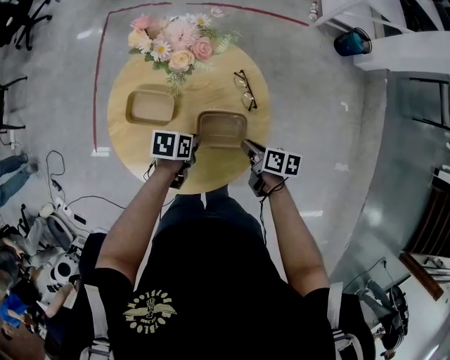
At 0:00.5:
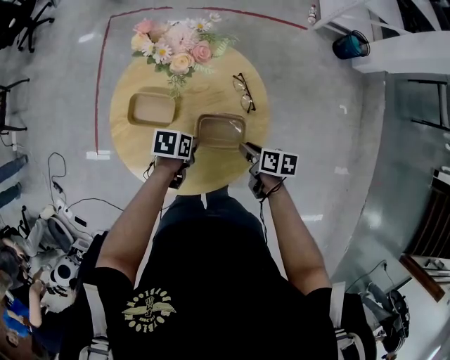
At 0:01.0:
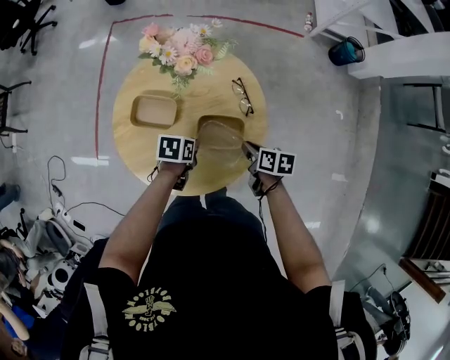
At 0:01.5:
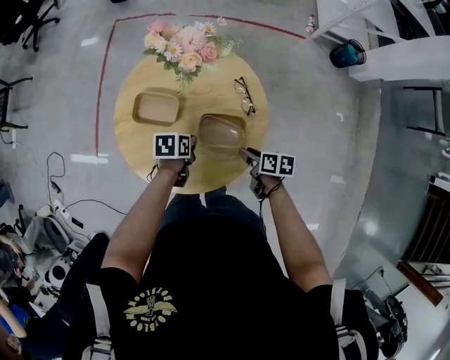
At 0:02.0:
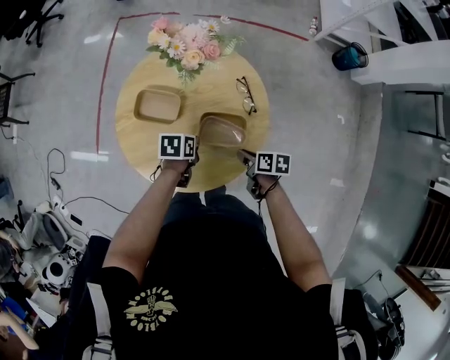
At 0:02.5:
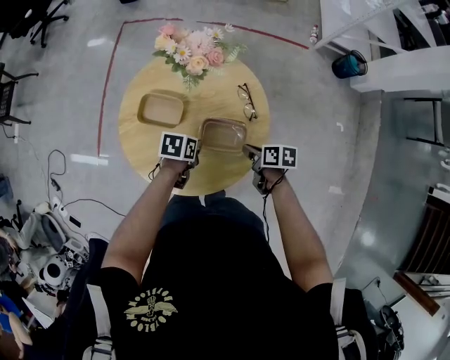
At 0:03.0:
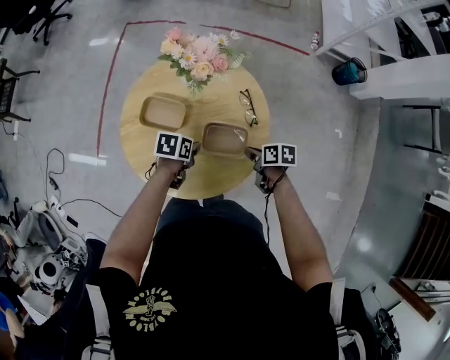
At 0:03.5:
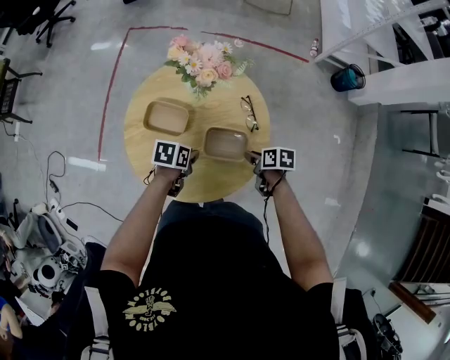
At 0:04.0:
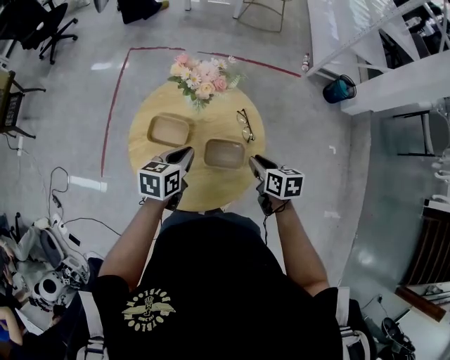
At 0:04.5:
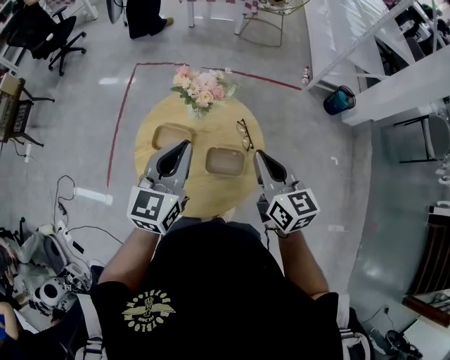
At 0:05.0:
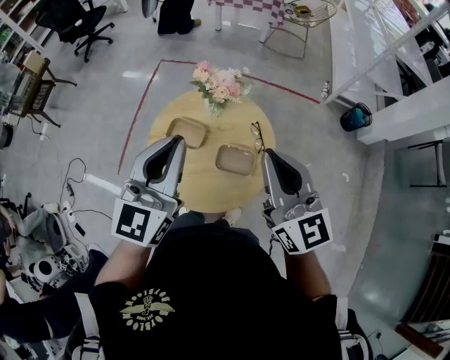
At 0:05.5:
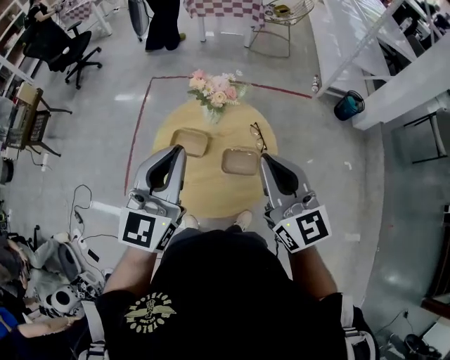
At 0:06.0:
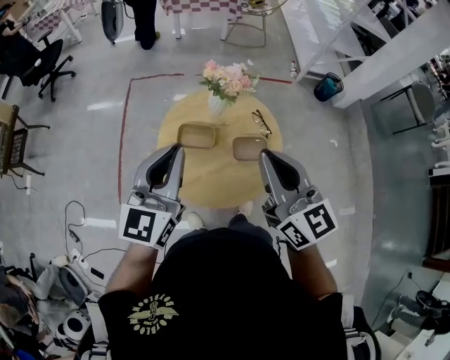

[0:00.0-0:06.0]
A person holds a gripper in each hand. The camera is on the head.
0:00.0 to 0:02.0: The right gripper opens and closes again.
0:02.0 to 0:04.0: Both grippers move upward, approximately 15 cm. The left gripper swivels approximately 30 degrees, while the right gripper changes its angle by approximately 30 degrees.
0:04.0 to 0:06.0: The two grippers go some 35 cm upward and to the left. The left gripper tips its fingers upward by about 40 degrees; the right gripper points its fingers roughly 40 degrees further upward, and closes its fingers.

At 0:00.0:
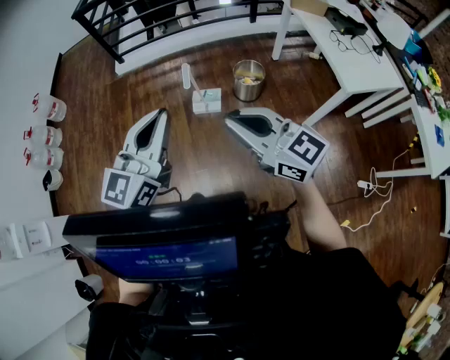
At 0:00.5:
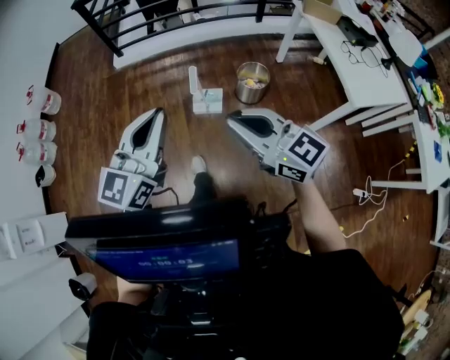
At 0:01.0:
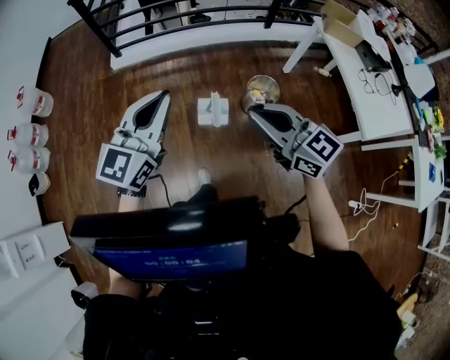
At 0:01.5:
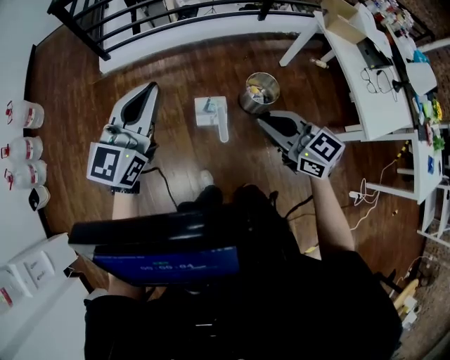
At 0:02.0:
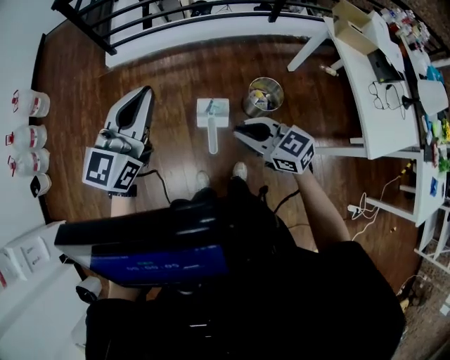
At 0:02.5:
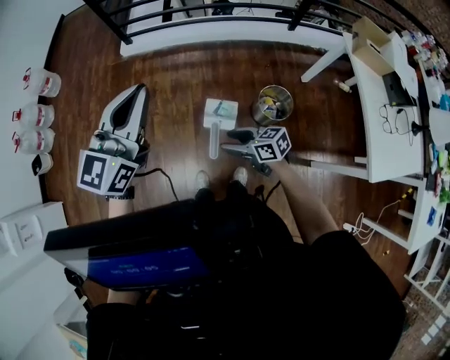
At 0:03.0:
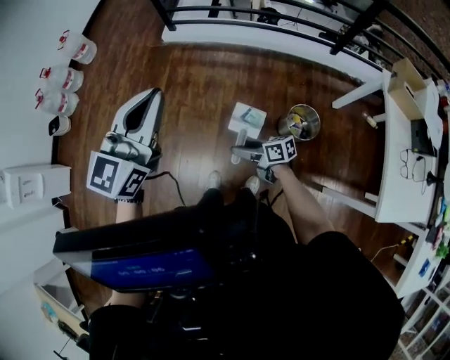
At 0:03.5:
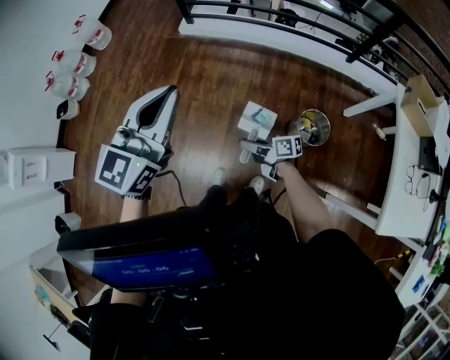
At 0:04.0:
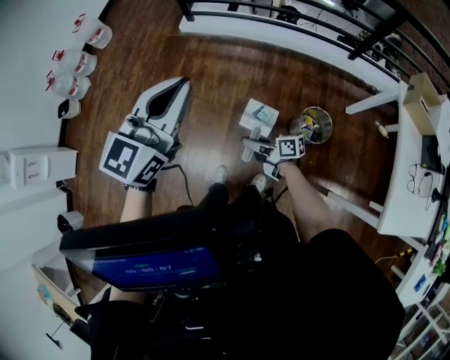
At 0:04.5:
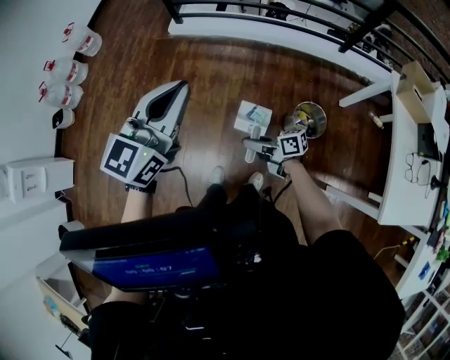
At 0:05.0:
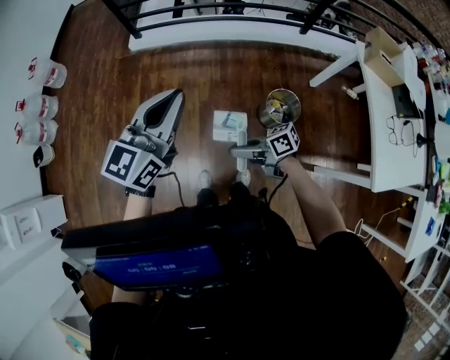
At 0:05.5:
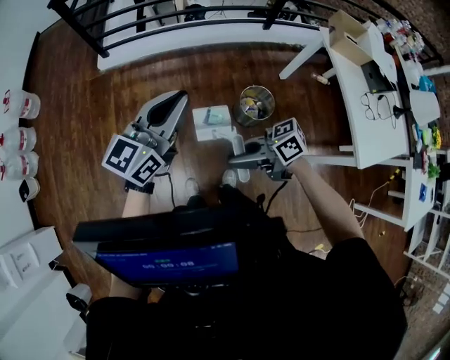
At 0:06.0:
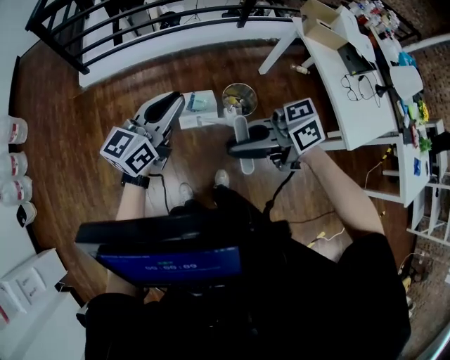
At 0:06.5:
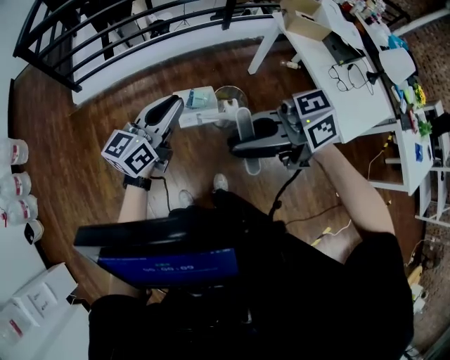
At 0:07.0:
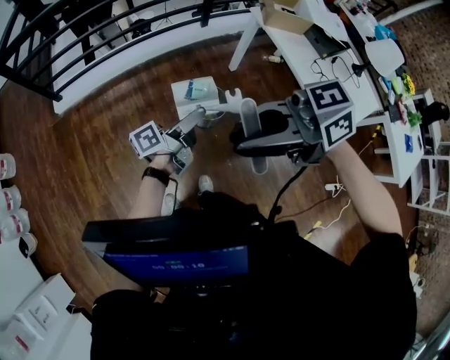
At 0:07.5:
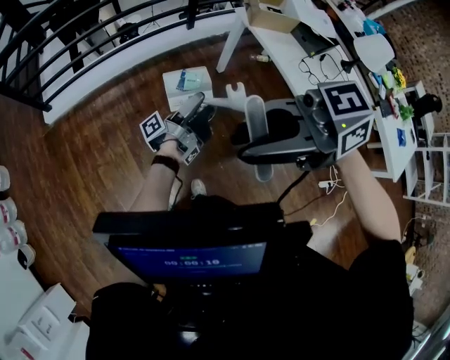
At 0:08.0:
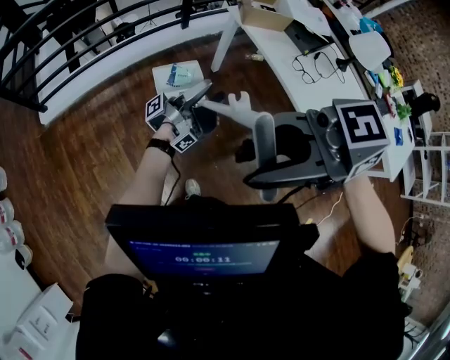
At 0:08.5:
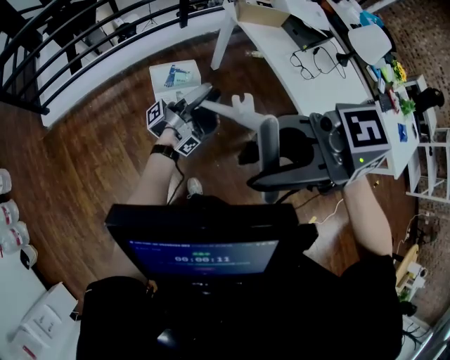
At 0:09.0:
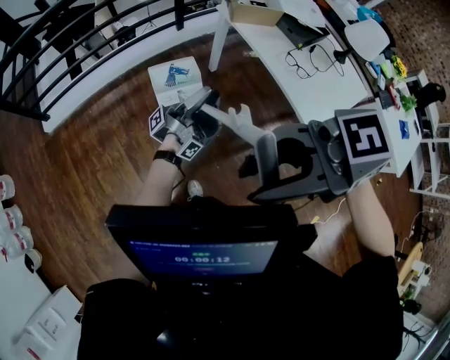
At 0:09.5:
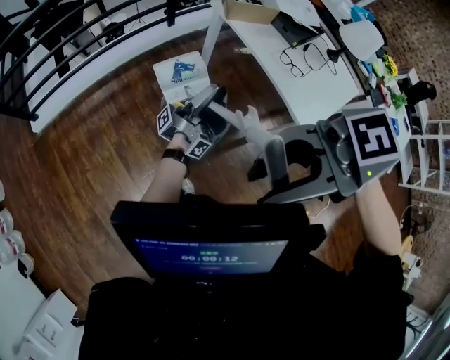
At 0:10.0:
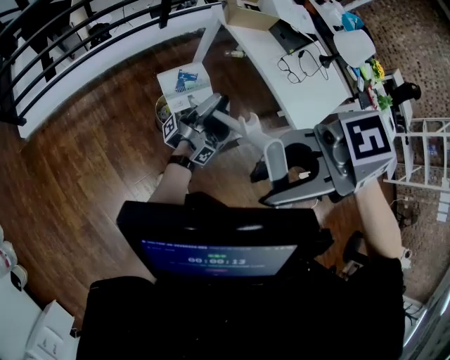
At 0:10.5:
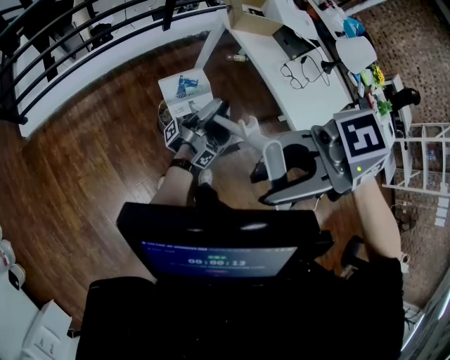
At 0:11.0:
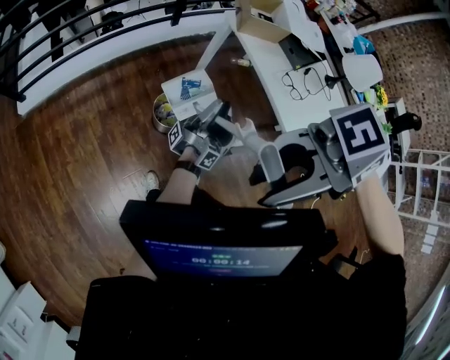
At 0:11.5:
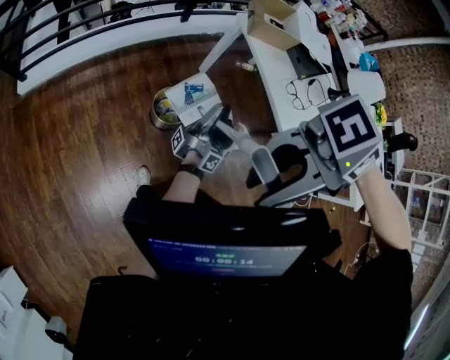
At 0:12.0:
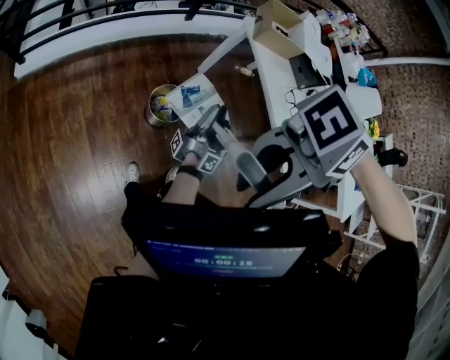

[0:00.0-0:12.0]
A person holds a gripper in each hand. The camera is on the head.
0:00.0 to 0:02.0: The right gripper ends up some 40 cm from where it was, and rotates about 20 degrees.
0:02.0 to 0:04.0: The right gripper moves downward, approximately 20 cm, twists roughly 50 degrees clockwise, seen from behind, and opens, then closes again.
0:04.0 to 0:06.0: The right gripper shifts some 25 cm upward, and swivels roughly 20 degrees.
0:06.0 to 0:08.0: The right gripper moves upward, about 15 cm, and changes its angle by approximately 20 degrees.
0:10.0 to 0:12.0: The right gripper shifts about 5 cm downward, and turns by roughly 40 degrees.

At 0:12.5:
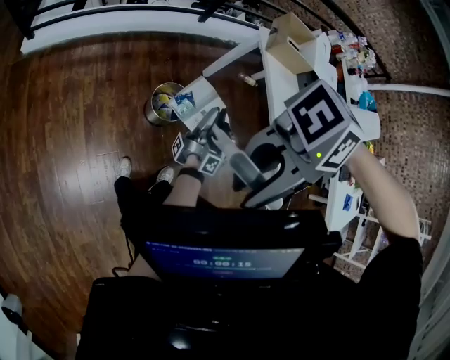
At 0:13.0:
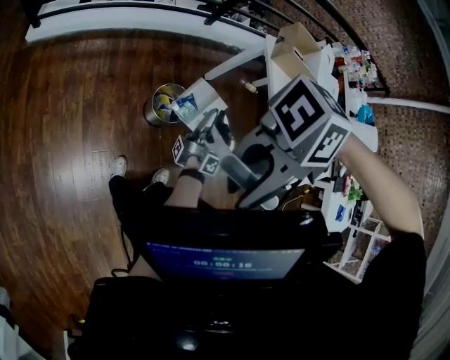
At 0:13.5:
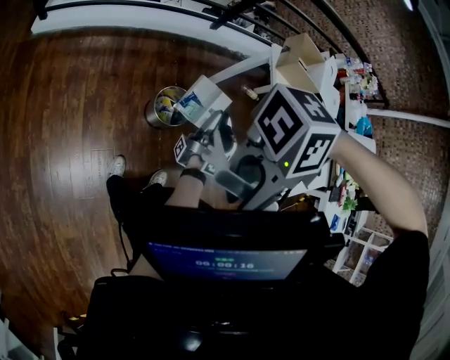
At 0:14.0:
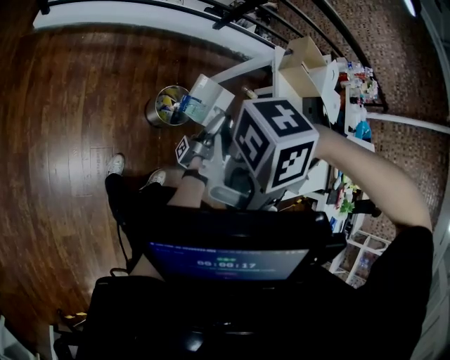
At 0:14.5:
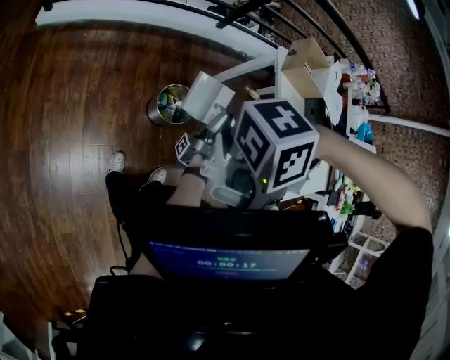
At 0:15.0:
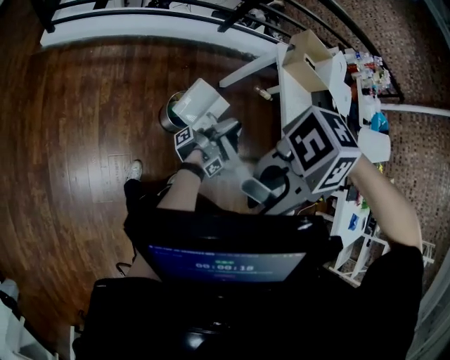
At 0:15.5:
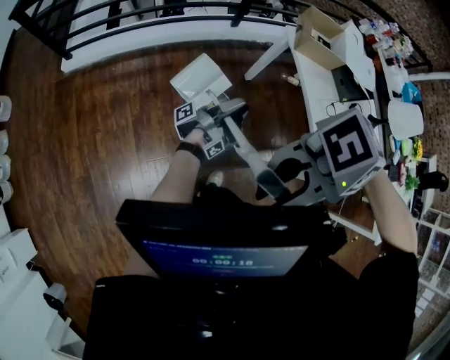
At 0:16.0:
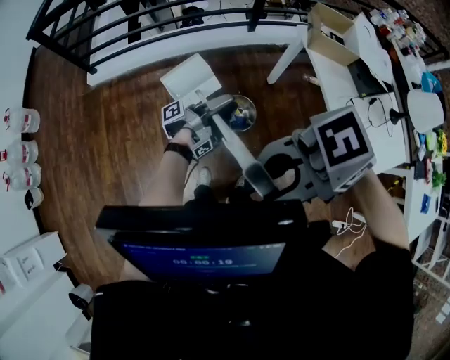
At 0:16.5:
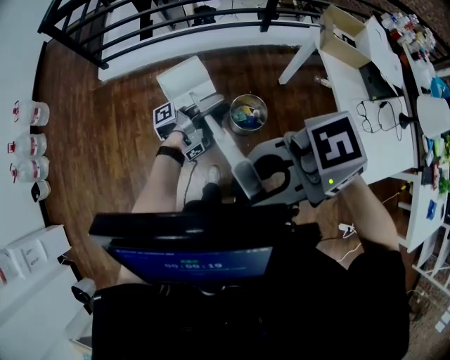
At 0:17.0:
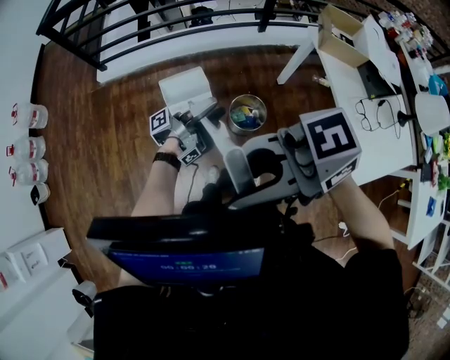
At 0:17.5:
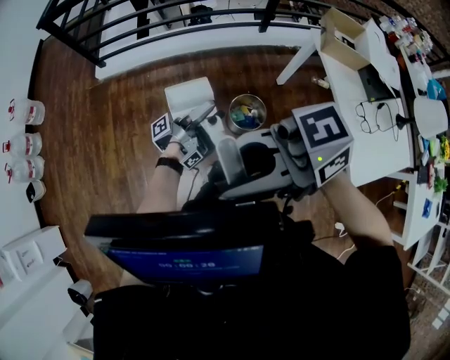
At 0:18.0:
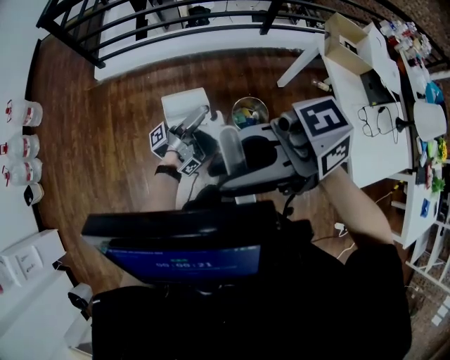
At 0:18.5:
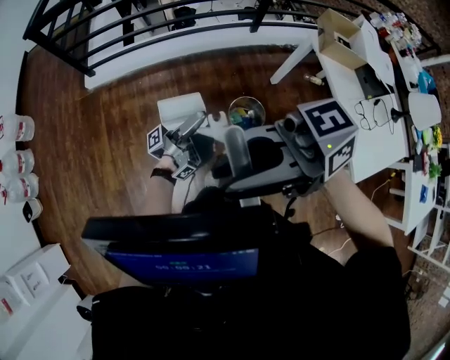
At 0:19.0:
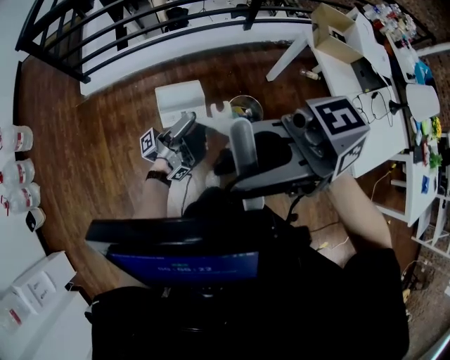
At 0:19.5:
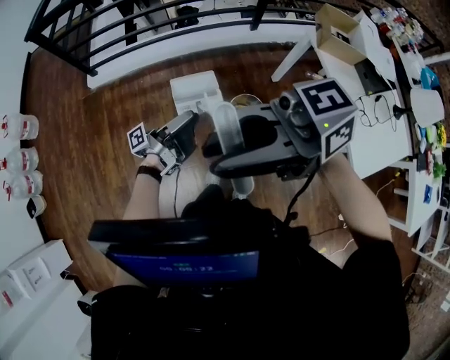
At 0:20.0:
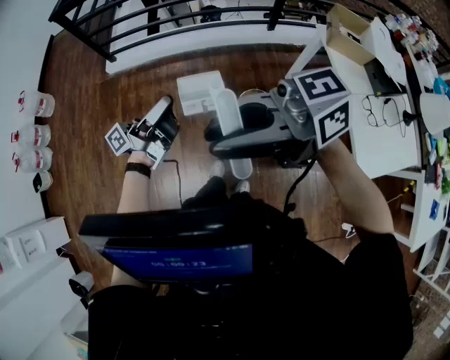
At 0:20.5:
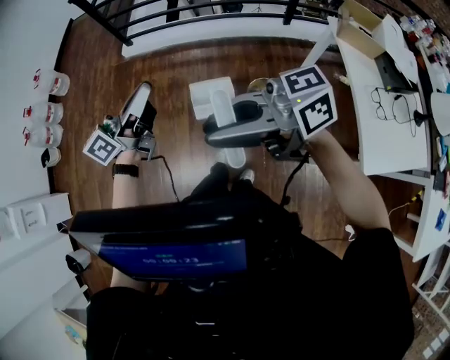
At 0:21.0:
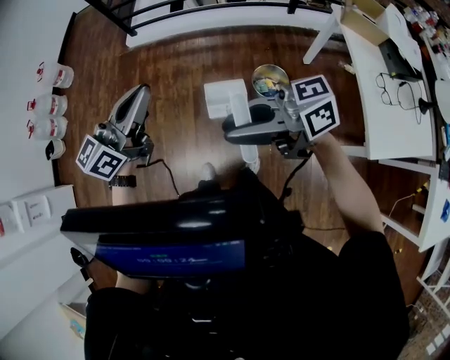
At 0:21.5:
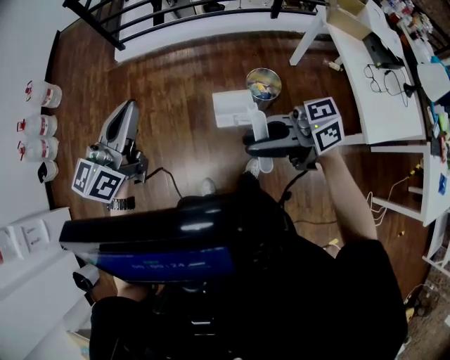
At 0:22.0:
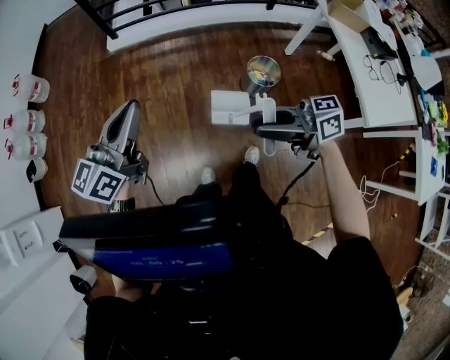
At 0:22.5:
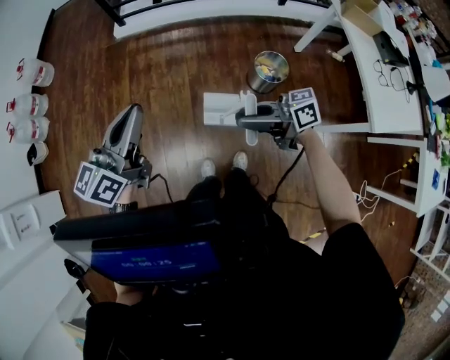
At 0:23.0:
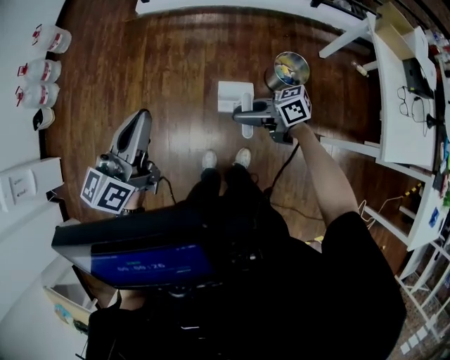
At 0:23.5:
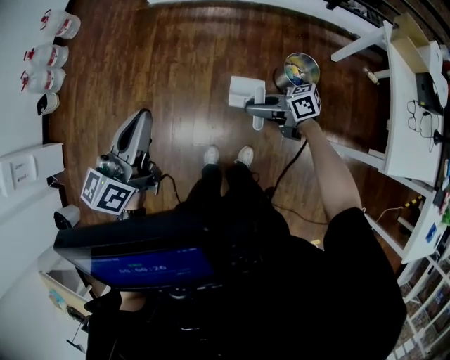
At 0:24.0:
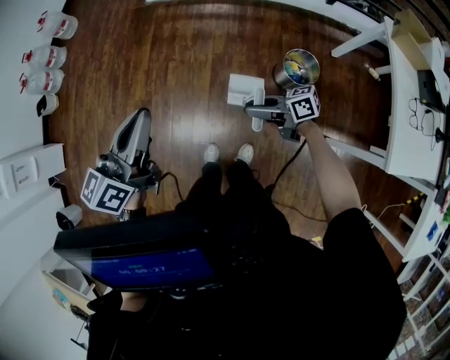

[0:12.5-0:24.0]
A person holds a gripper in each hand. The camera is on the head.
0:12.5 to 0:14.5: The right gripper is displaced downward by some 5 cm, and changes its angle by some 30 degrees.
0:14.5 to 0:16.5: The right gripper shifts about 10 cm upward, and turns by roughly 70 degrees.
0:16.5 to 0:18.5: The right gripper moves roughly 10 cm, and changes its angle by roughly 20 degrees.
0:18.5 to 0:20.0: The right gripper shifts by some 5 cm.
0:20.0 to 0:22.0: The right gripper changes place by some 25 cm, and changes its angle by some 20 degrees.
0:22.0 to 0:24.0: The right gripper travels downward by approximately 20 cm.
